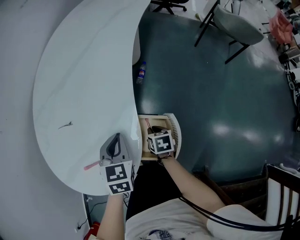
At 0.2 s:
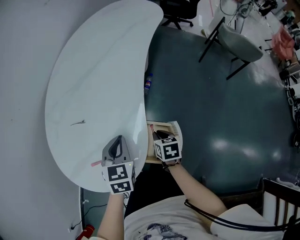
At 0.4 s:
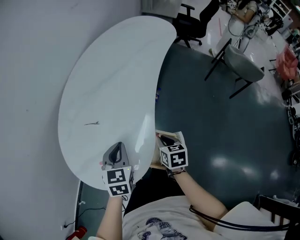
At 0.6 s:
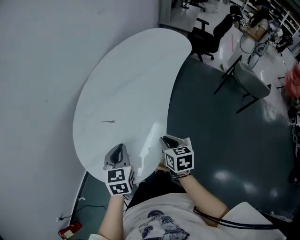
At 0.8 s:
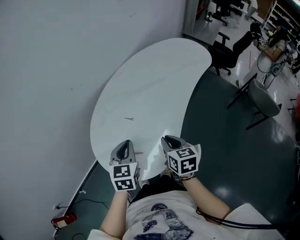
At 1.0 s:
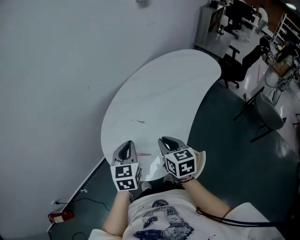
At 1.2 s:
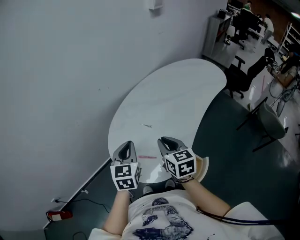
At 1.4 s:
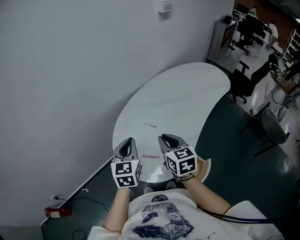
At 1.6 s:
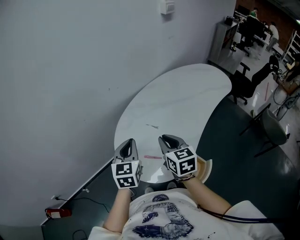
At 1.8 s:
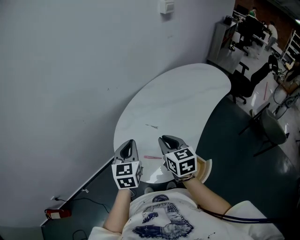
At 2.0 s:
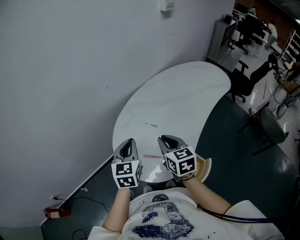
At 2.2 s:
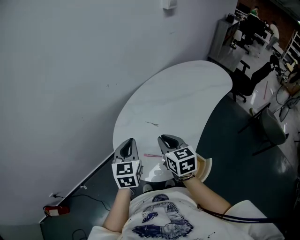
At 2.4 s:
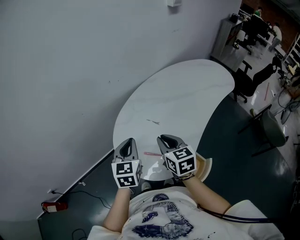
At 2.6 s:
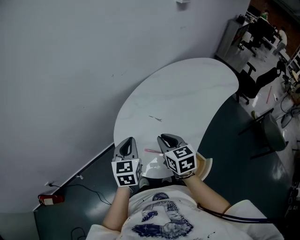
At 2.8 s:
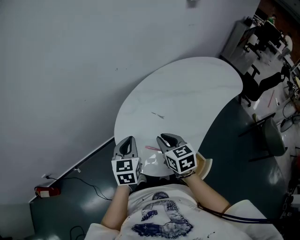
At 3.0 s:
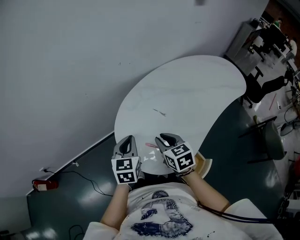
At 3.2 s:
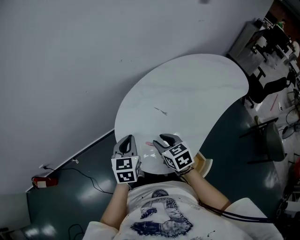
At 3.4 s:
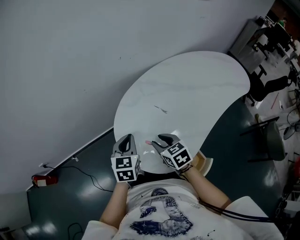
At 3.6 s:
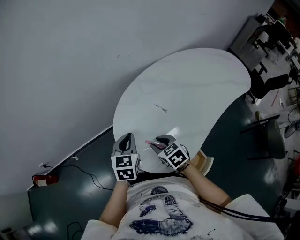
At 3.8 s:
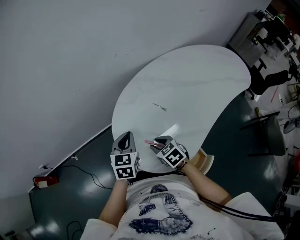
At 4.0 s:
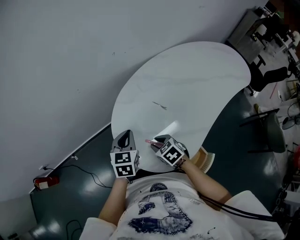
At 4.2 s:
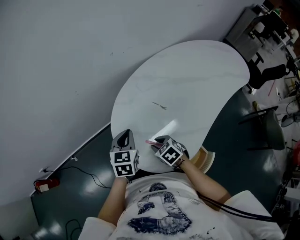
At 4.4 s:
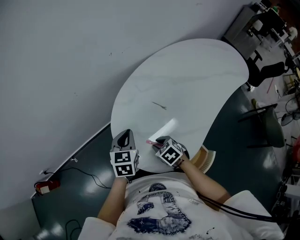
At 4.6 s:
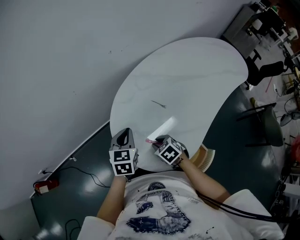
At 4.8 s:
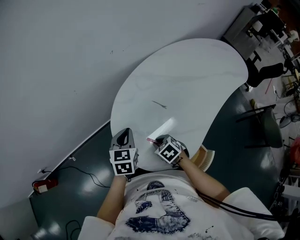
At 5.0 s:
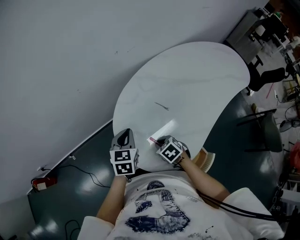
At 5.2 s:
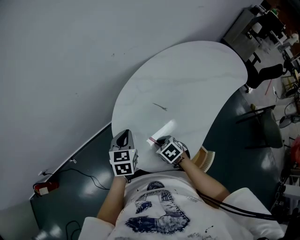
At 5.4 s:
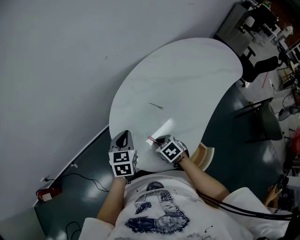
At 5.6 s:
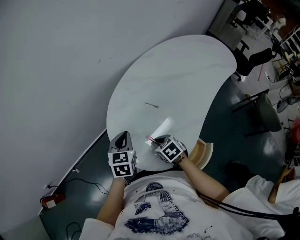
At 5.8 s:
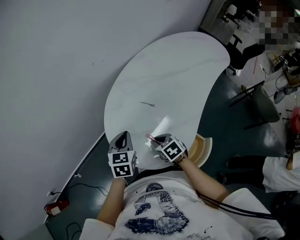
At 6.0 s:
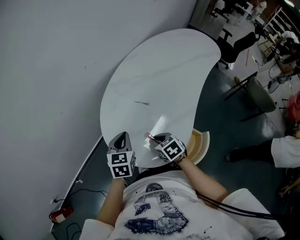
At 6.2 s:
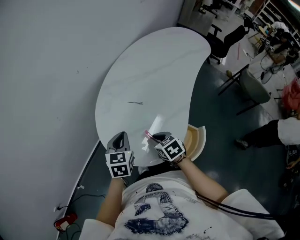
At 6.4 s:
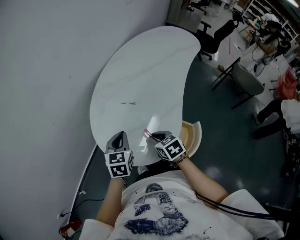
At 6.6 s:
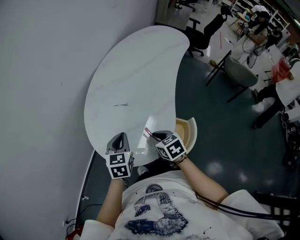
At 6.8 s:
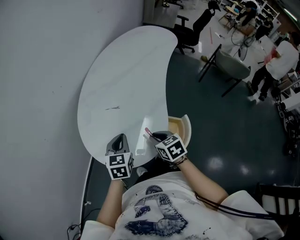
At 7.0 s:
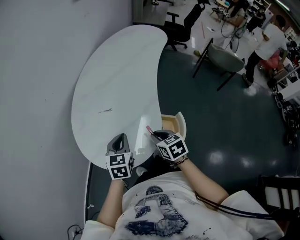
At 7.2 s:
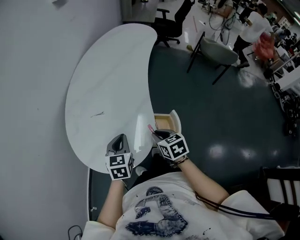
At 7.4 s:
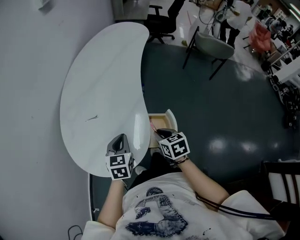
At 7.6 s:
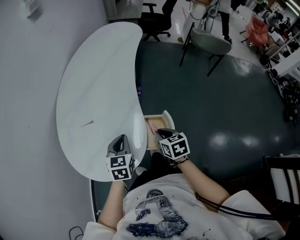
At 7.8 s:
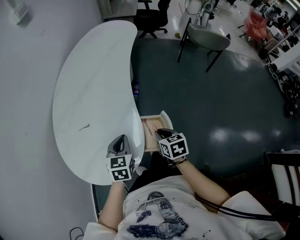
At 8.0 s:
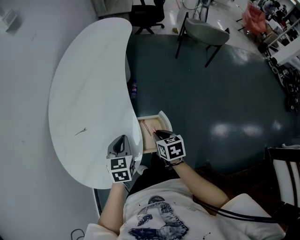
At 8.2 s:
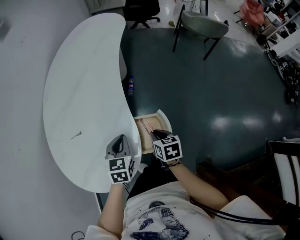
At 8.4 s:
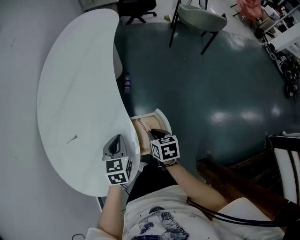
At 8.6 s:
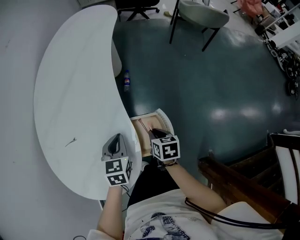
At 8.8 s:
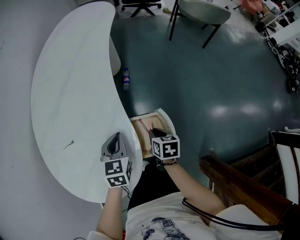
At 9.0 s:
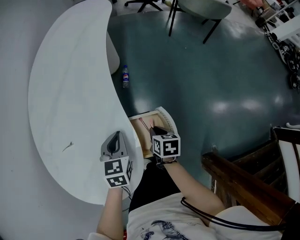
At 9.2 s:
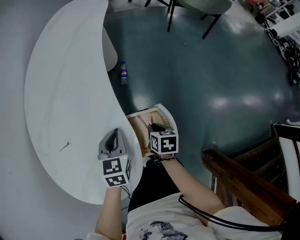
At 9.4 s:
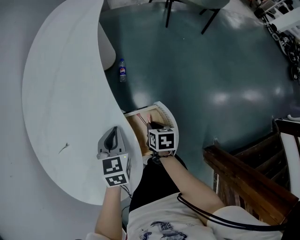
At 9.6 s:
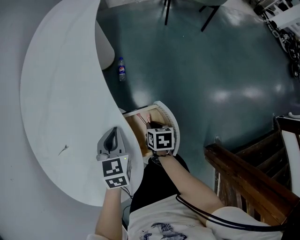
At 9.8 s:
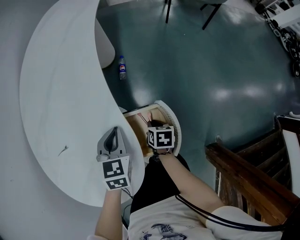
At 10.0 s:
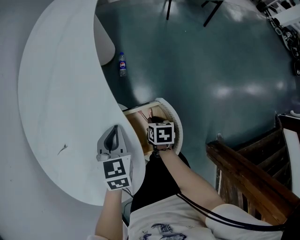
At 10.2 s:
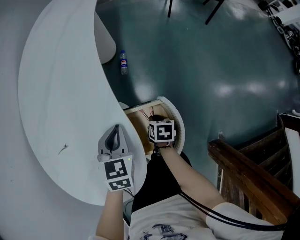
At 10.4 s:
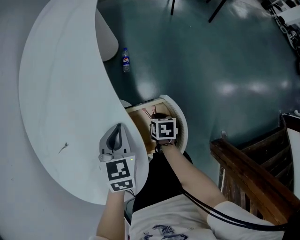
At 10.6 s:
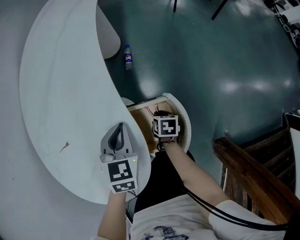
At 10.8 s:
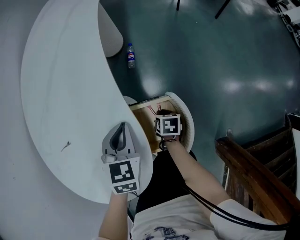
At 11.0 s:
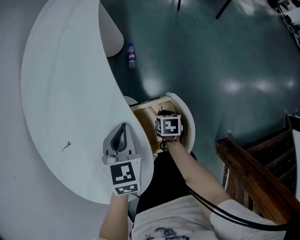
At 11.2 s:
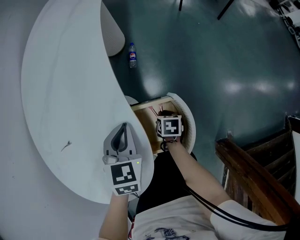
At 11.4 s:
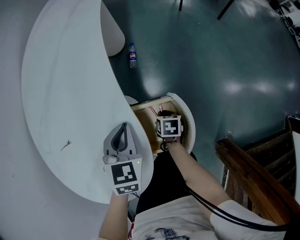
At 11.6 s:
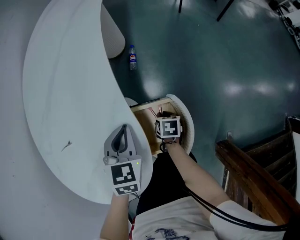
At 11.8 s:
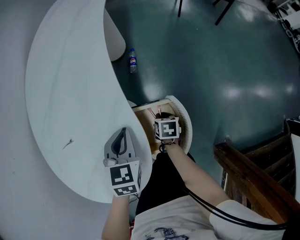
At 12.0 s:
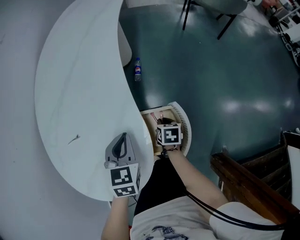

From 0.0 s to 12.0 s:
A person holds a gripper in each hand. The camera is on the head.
From 0.0 s to 1.6 s: The left gripper changes place by about 40 cm, and swivels roughly 40 degrees; the right gripper heads upward, covering roughly 40 cm, and angles its fingers upward, by roughly 40 degrees.
From 1.6 s to 3.0 s: The left gripper travels downward by approximately 10 cm, while the right gripper moves downward and to the left, some 10 cm, and rotates about 20 degrees.
From 3.0 s to 4.4 s: The right gripper moves downward, about 15 cm, and turns by some 30 degrees. The left gripper heads downward and forward, covering roughly 10 cm.
From 4.4 s to 6.0 s: The right gripper shifts by roughly 5 cm, and turns by roughly 30 degrees.
From 6.0 s to 7.6 s: The left gripper moves roughly 25 cm, and changes its angle by approximately 30 degrees. The right gripper ends up approximately 25 cm from where it was, and changes its angle by some 50 degrees.
From 7.6 s to 9.0 s: The right gripper heads downward, covering roughly 20 cm, and swivels about 30 degrees. Meanwhile the left gripper goes some 15 cm downward, forward and to the right.
From 9.0 s to 10.4 s: The right gripper moves downward, some 10 cm.
From 10.4 s to 12.0 s: The left gripper changes place by some 5 cm.

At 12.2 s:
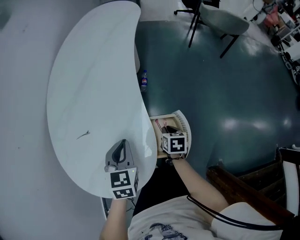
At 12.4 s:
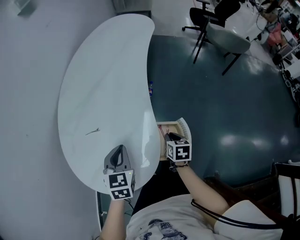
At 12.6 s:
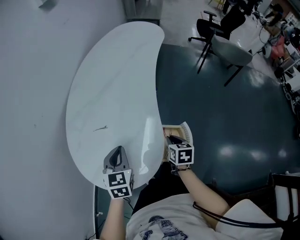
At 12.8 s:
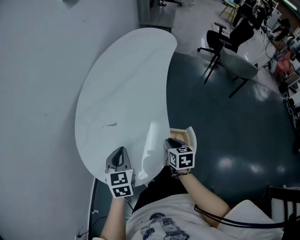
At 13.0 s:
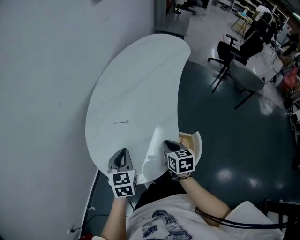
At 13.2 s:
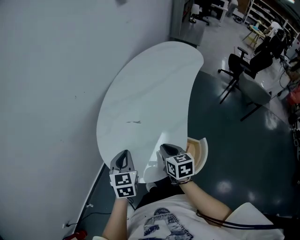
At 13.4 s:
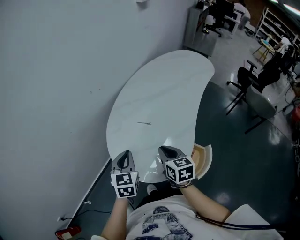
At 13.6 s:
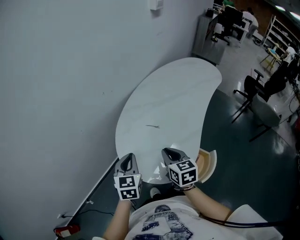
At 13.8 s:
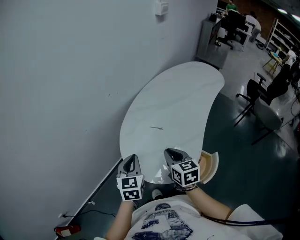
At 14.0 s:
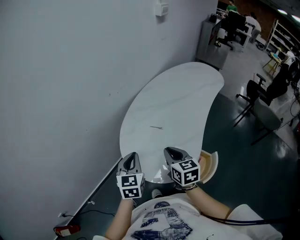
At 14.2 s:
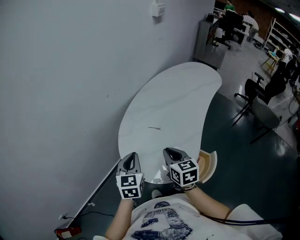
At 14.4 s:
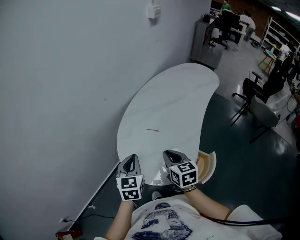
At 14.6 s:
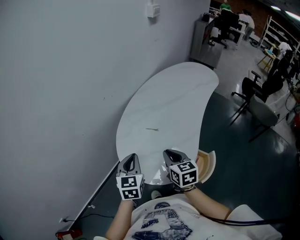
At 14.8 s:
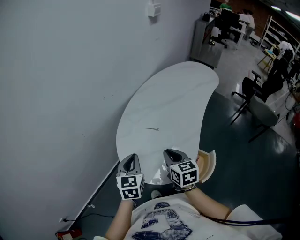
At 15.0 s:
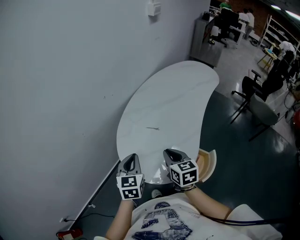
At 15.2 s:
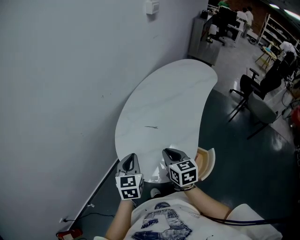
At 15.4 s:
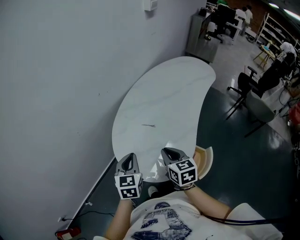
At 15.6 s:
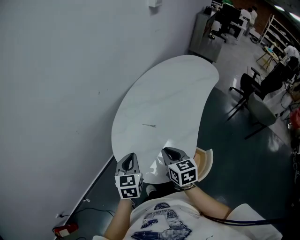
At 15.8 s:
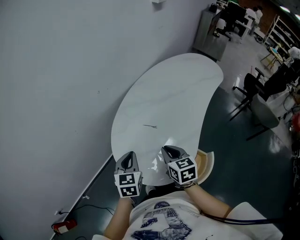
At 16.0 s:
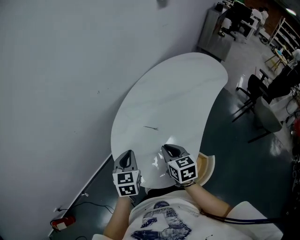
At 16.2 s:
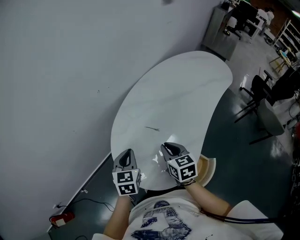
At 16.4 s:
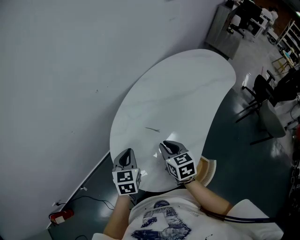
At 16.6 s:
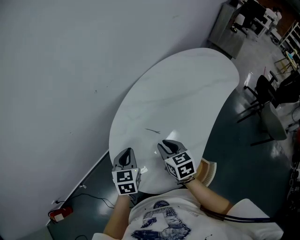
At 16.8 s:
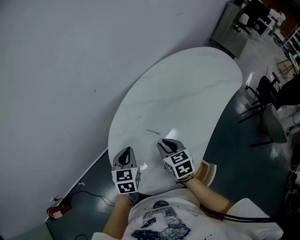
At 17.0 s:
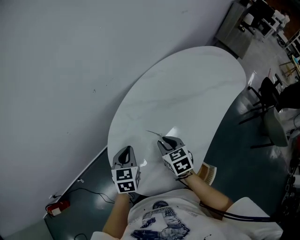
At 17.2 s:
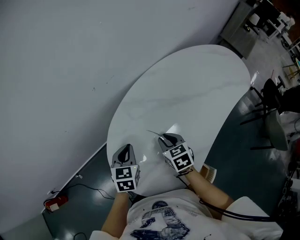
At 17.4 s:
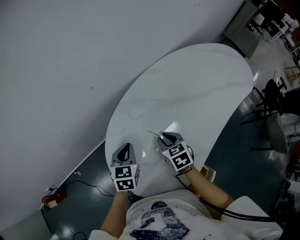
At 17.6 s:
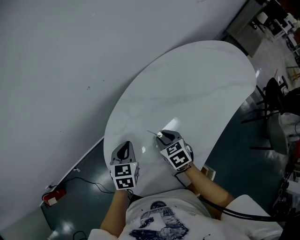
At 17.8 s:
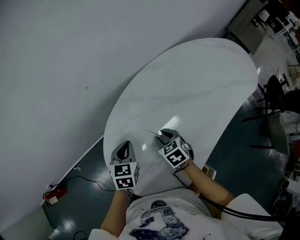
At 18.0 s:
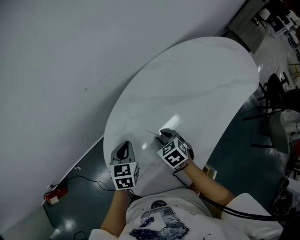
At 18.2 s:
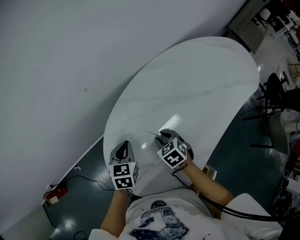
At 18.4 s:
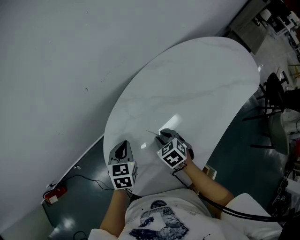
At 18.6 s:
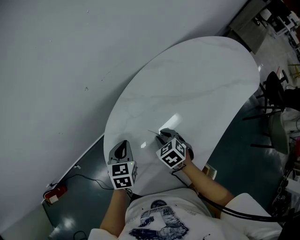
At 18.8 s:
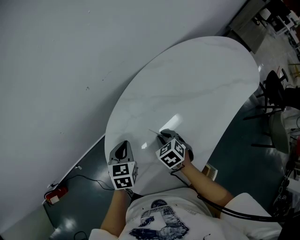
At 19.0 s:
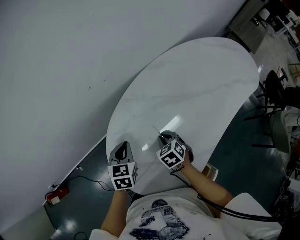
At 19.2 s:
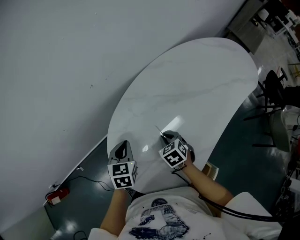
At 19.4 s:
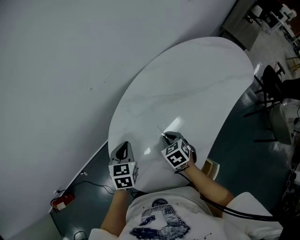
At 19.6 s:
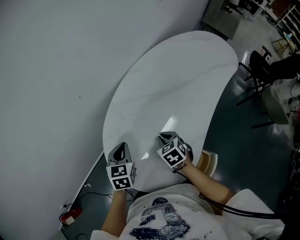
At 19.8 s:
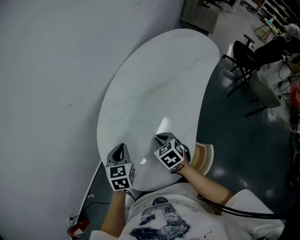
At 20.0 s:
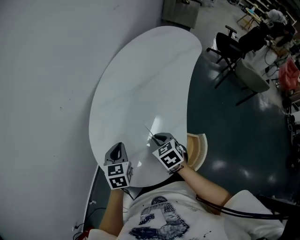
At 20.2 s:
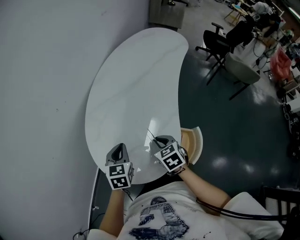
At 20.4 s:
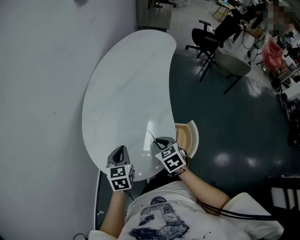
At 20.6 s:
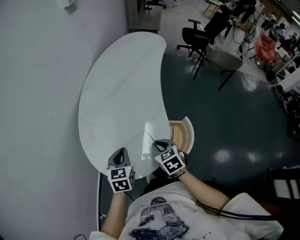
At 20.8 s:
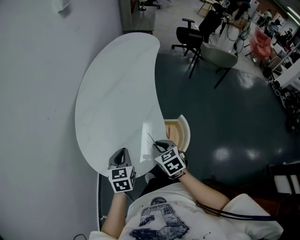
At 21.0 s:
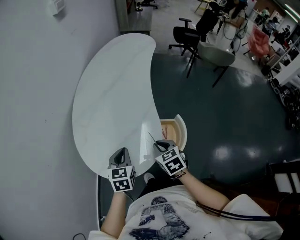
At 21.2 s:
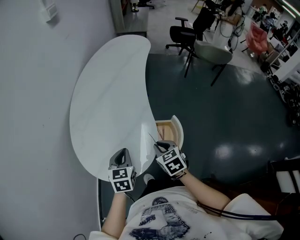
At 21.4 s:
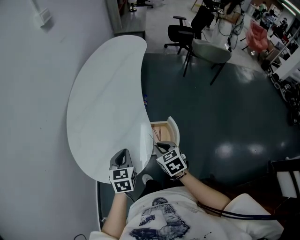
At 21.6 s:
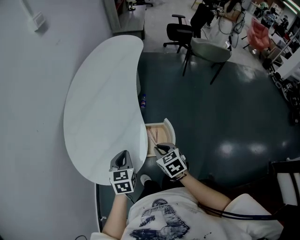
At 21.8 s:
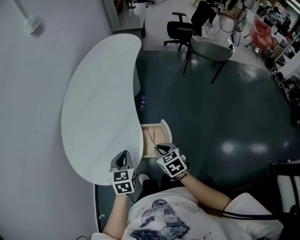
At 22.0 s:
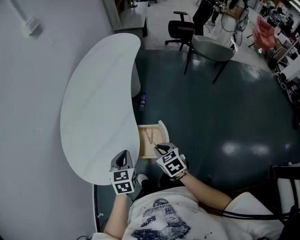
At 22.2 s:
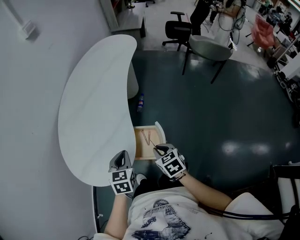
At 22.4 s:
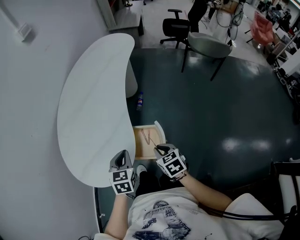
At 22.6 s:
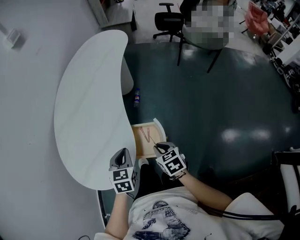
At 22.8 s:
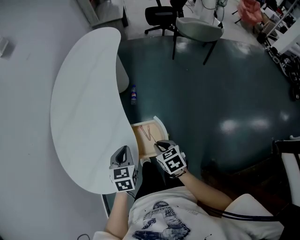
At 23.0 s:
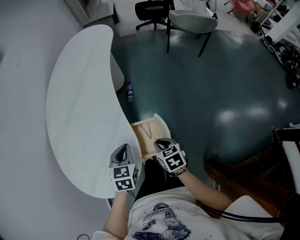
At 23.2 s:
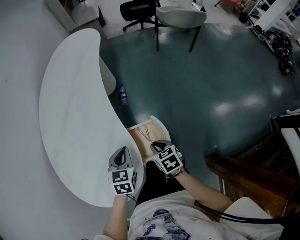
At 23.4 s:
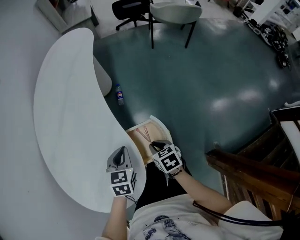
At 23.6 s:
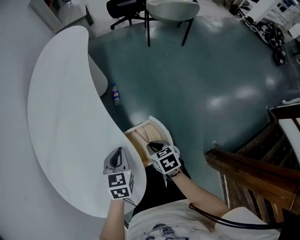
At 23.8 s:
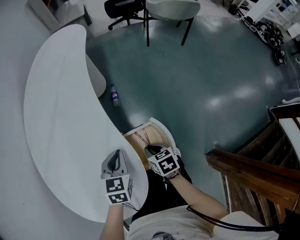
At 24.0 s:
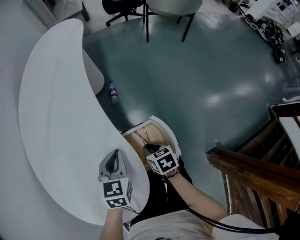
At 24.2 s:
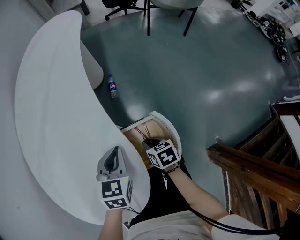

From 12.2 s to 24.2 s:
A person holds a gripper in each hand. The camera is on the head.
From 12.2 s to 13.8 s: The left gripper moves approximately 35 cm, and swivels approximately 40 degrees. The right gripper heads upward, covering some 35 cm, and changes its angle by about 60 degrees.
From 13.8 s to 15.2 s: The grippers move only a little.
From 15.2 s to 16.6 s: The two grippers go roughly 15 cm forward and downward.
From 16.6 s to 18.2 s: Both grippers travel together downward and forward, some 15 cm. The right gripper changes its angle by approximately 30 degrees.
From 18.2 s to 19.8 s: The left gripper goes approximately 10 cm upward and backward; the right gripper moves backward and upward, some 10 cm, and rotates roughly 20 degrees.
From 19.8 s to 21.2 s: The right gripper shifts by roughly 25 cm, and rotates approximately 30 degrees. Meanwhile the left gripper ends up some 25 cm from where it was, and rotates approximately 30 degrees.
From 21.2 s to 22.6 s: The right gripper moves to the right and downward, some 15 cm. Meanwhile the left gripper is displaced to the right by approximately 15 cm.
From 22.6 s to 24.2 s: The left gripper heads downward and forward, covering approximately 15 cm, and changes its angle by approximately 20 degrees. The right gripper is displaced downward by some 20 cm, and turns by some 30 degrees.
